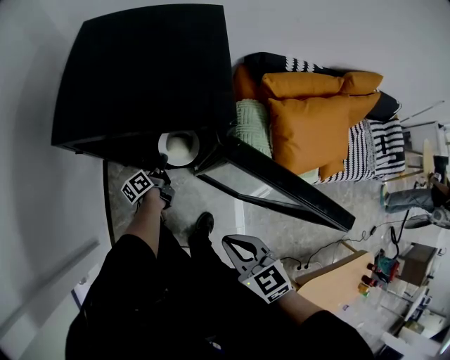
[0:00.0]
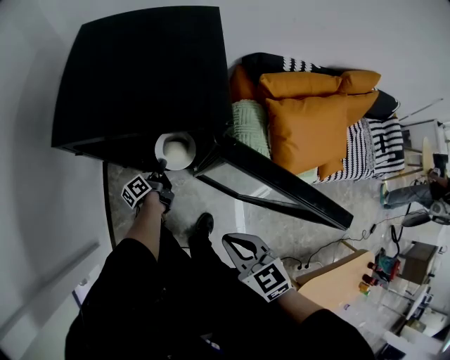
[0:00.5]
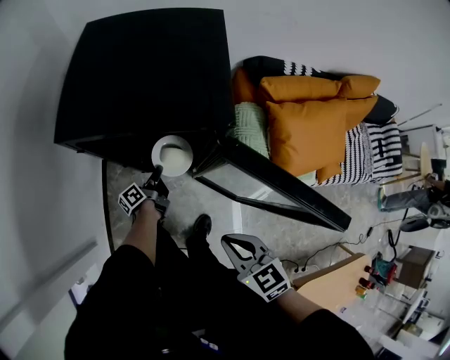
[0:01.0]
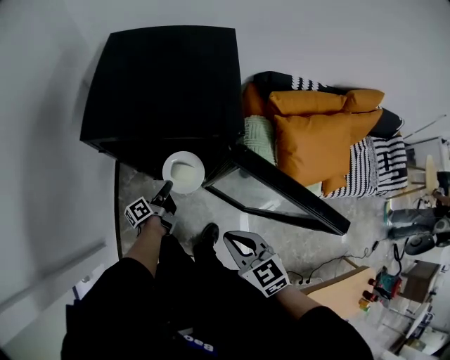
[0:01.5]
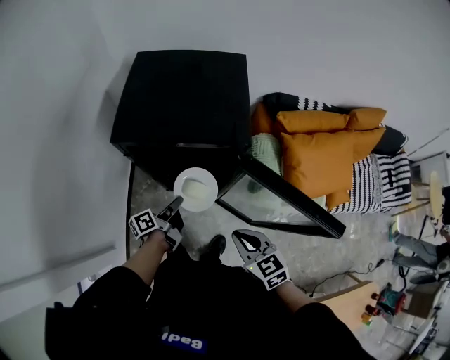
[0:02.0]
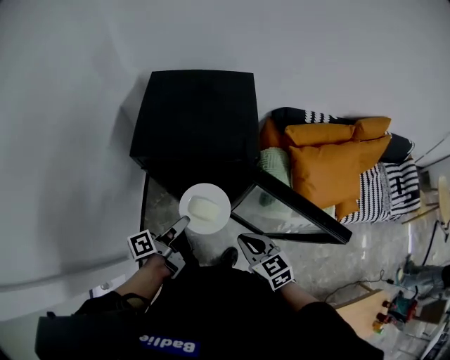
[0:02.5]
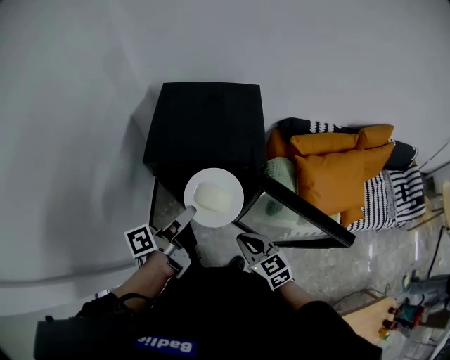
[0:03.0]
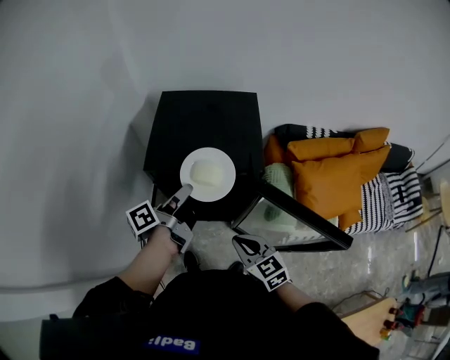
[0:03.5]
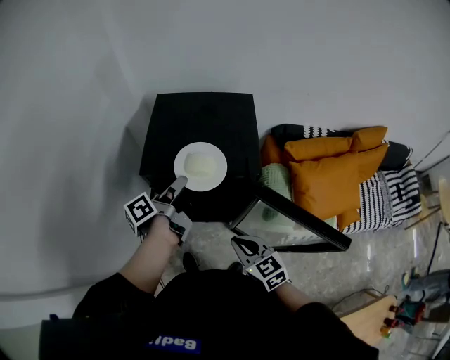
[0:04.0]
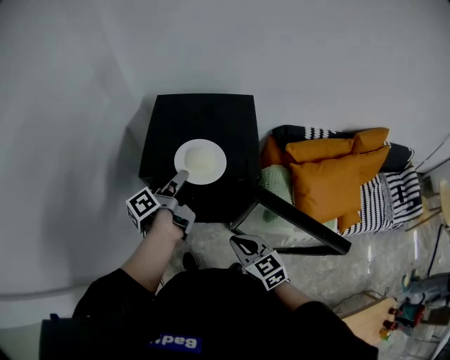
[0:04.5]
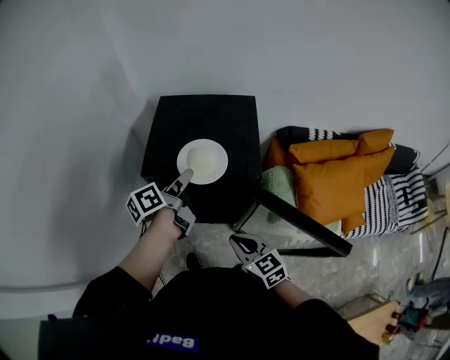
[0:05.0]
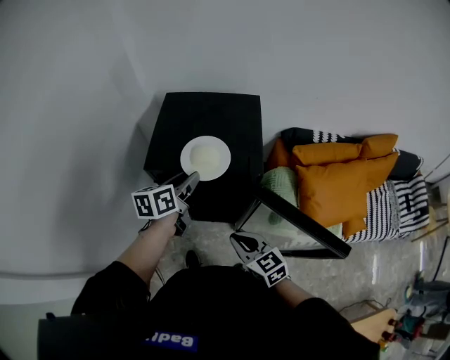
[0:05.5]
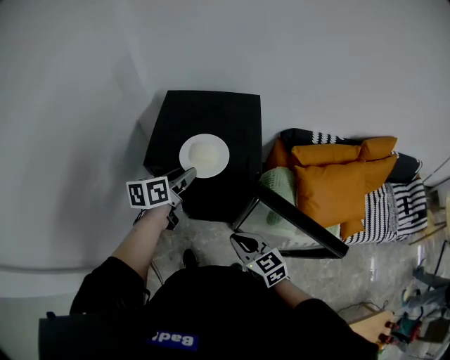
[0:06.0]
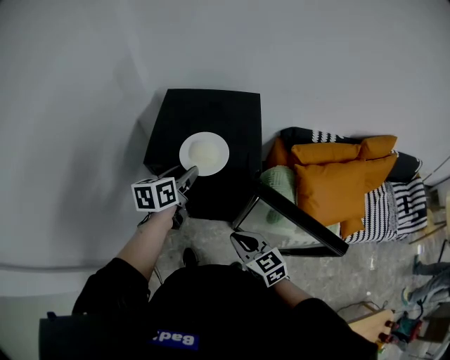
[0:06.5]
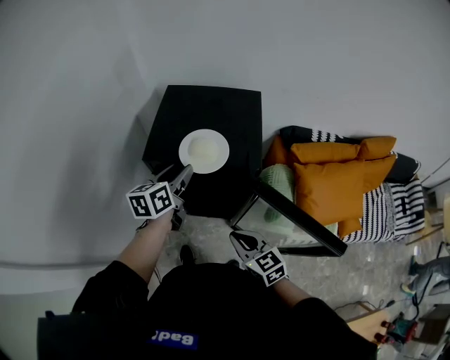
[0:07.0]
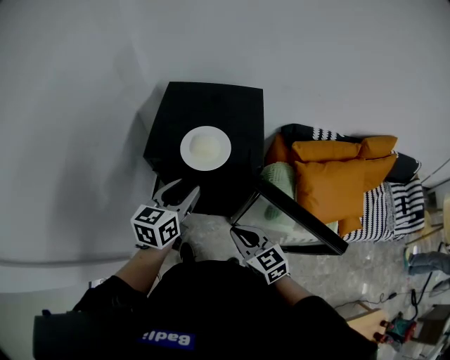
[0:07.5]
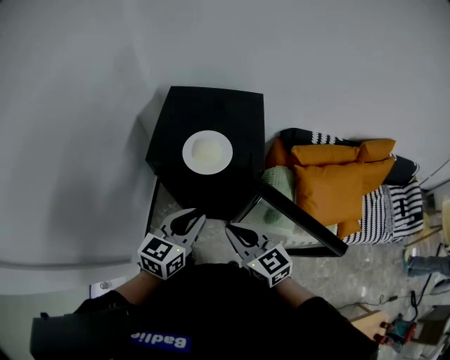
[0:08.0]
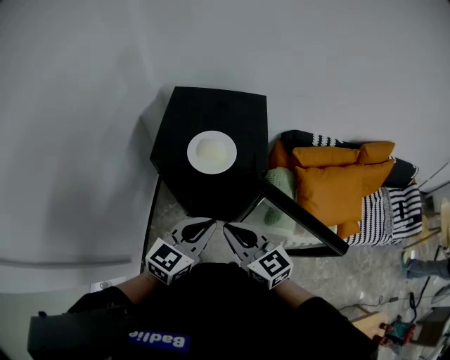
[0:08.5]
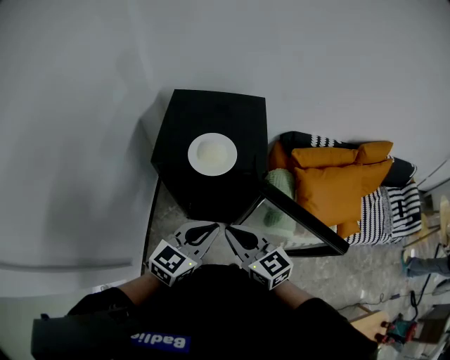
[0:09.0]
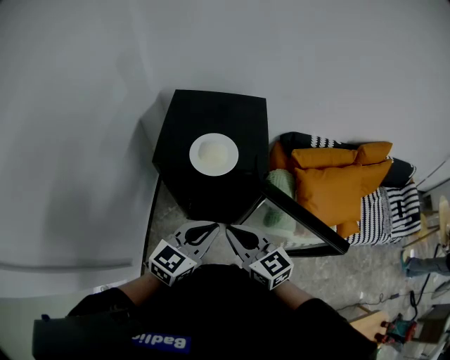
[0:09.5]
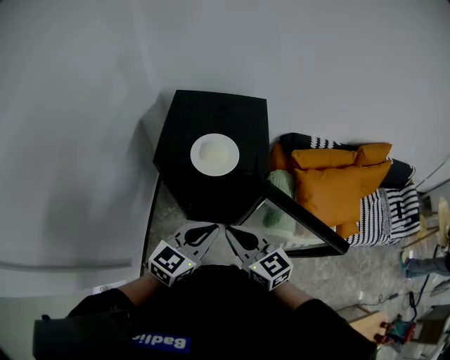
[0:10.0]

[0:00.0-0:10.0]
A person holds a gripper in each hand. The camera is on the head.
0:00.0 to 0:02.0: The left gripper moves upward and backward, about 20 cm.
0:02.0 to 0:04.0: The left gripper is displaced upward and forward by roughly 25 cm, while the right gripper heads to the left and forward, covering roughly 5 cm.
0:04.0 to 0:06.0: The left gripper rolls clockwise, seen from behind, by approximately 40 degrees, and opens.
0:06.0 to 0:08.0: The left gripper heads backward, covering approximately 15 cm, and changes its angle by about 30 degrees; the right gripper heads upward, covering roughly 10 cm.
0:08.0 to 0:10.0: The grippers move only a little.

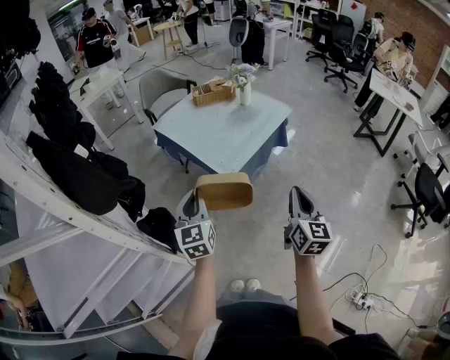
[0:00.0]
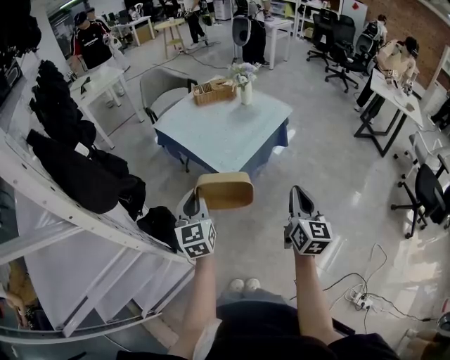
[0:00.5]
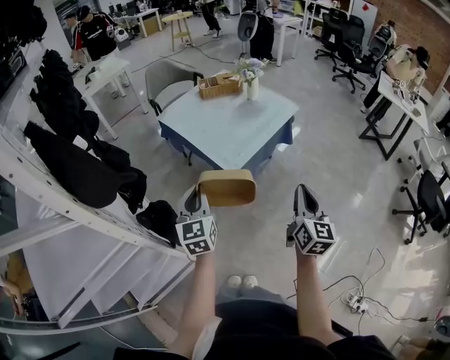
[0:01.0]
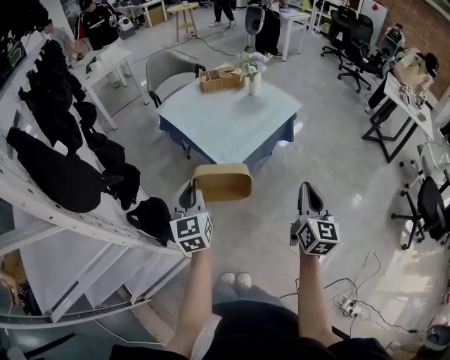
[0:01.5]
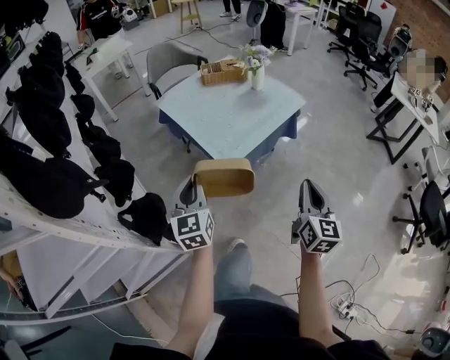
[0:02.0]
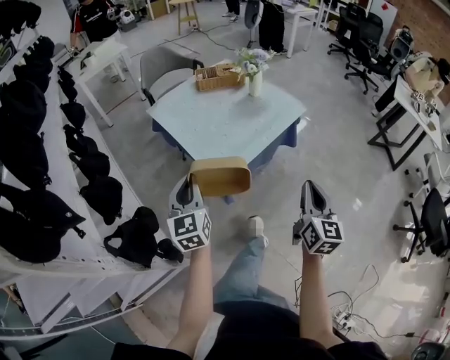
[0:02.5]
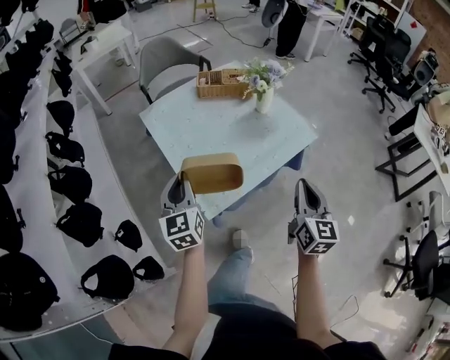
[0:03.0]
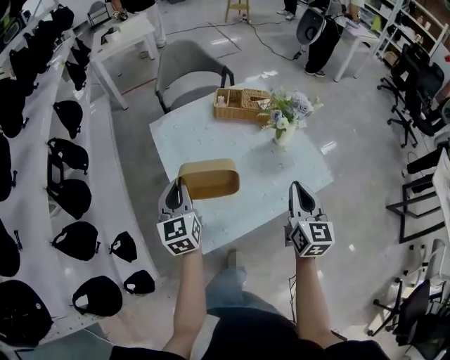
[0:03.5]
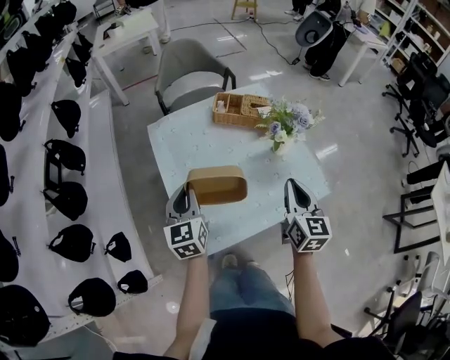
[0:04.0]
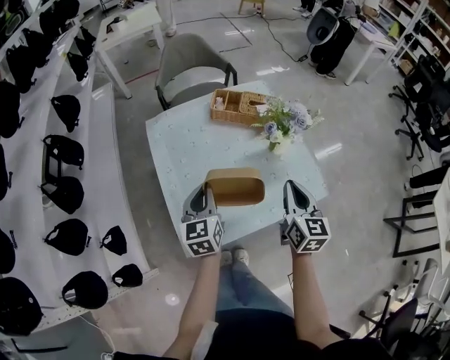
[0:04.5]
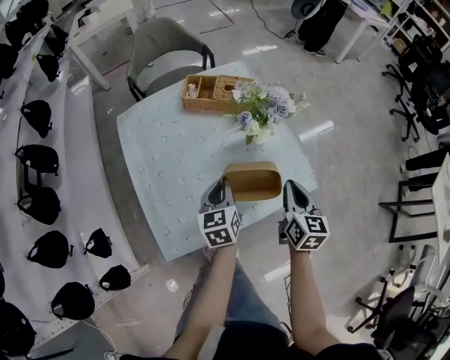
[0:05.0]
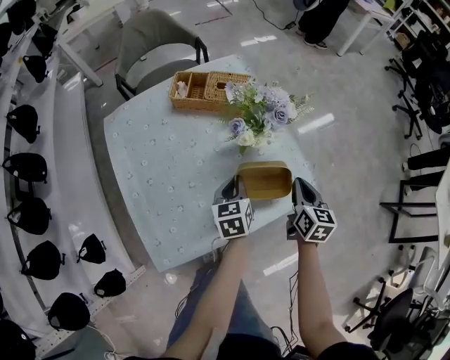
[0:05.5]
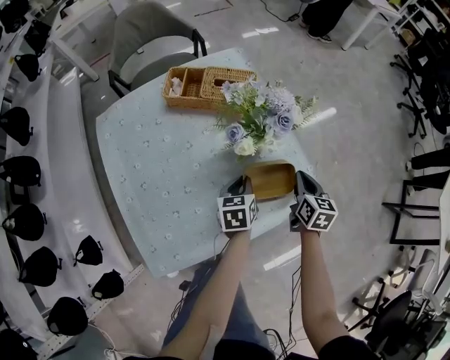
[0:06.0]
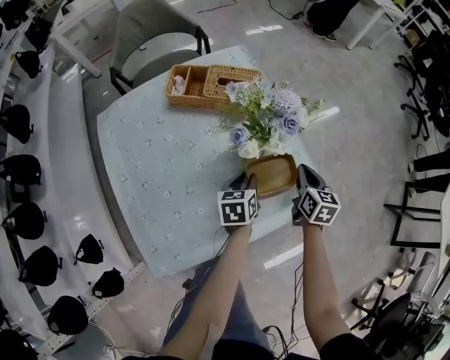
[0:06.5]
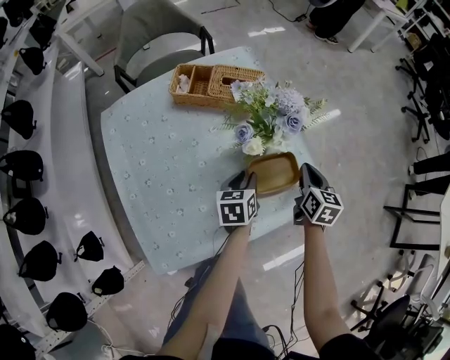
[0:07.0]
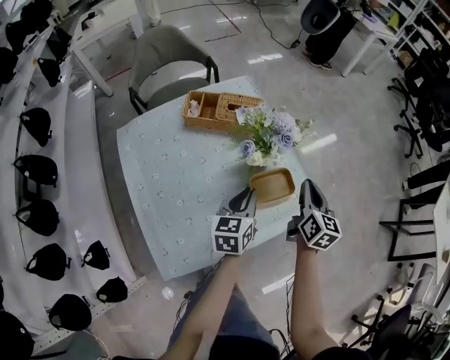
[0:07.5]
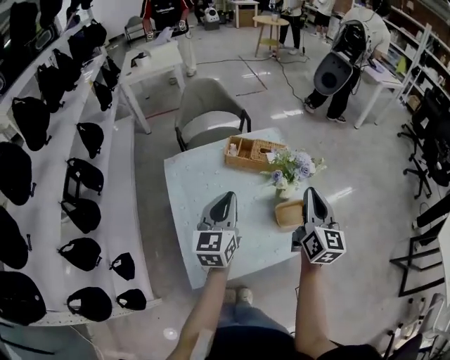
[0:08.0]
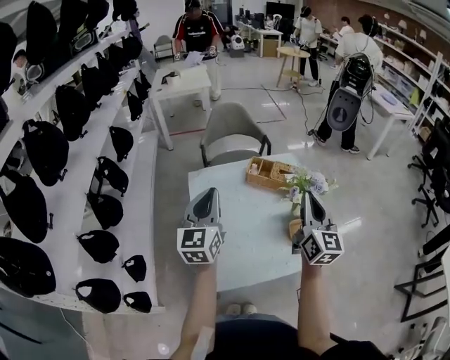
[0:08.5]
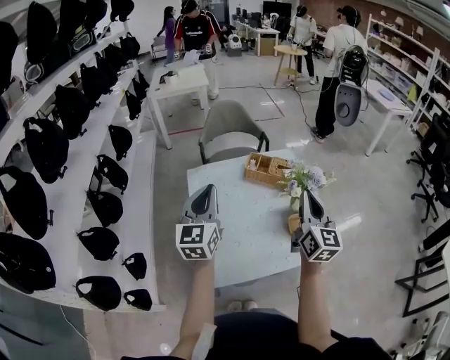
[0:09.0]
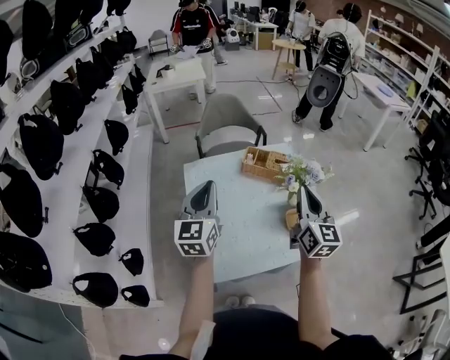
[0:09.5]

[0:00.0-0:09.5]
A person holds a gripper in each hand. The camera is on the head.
0:00.0 to 0:02.0: The left gripper ends up about 5 cm from where it was, while the right gripper heads forward, covering some 5 cm.
0:02.0 to 0:04.0: Both grippers are carried forward, some 50 cm. The left gripper changes its angle by about 20 degrees, while the right gripper rotates some 30 degrees.
0:04.0 to 0:05.5: The left gripper shifts some 35 cm to the right and downward, and rotates about 30 degrees; the right gripper shifts roughly 25 cm to the right, downward and forward.
0:05.5 to 0:07.5: The grippers both shift upward by approximately 10 cm.
0:07.5 to 0:09.5: The right gripper shifts roughly 30 cm upward and to the left, and turns by roughly 30 degrees, while the left gripper travels to the left and upward by some 40 cm, and changes its angle by roughly 40 degrees.

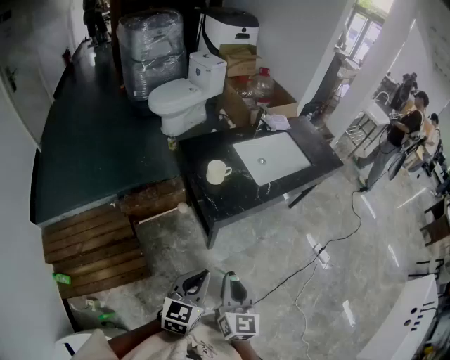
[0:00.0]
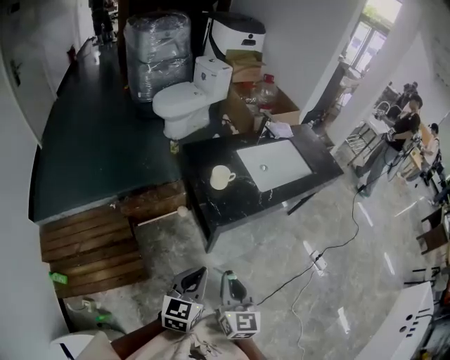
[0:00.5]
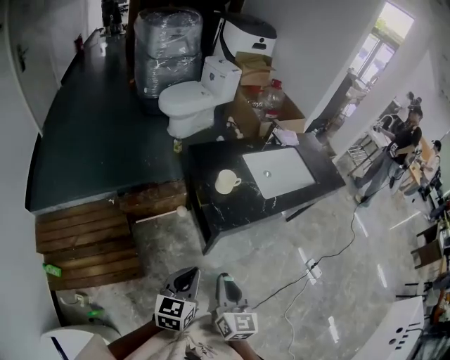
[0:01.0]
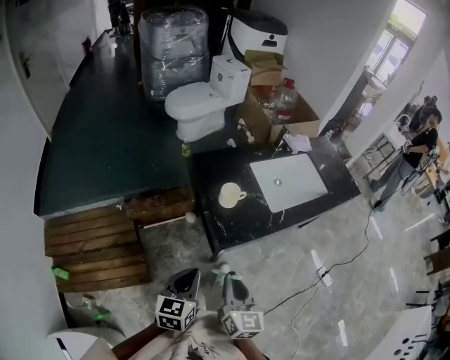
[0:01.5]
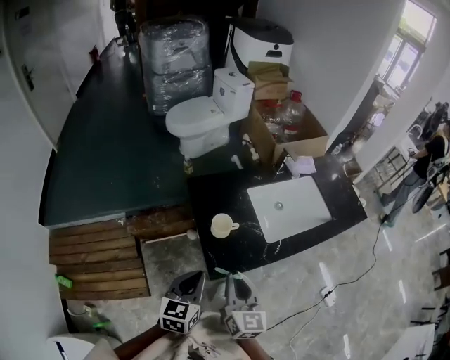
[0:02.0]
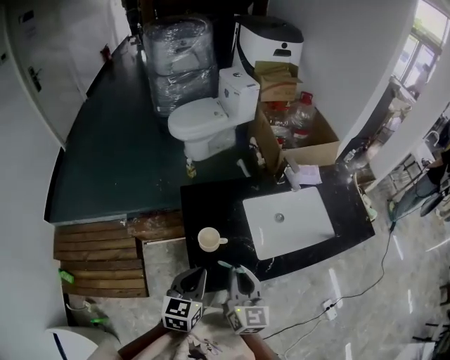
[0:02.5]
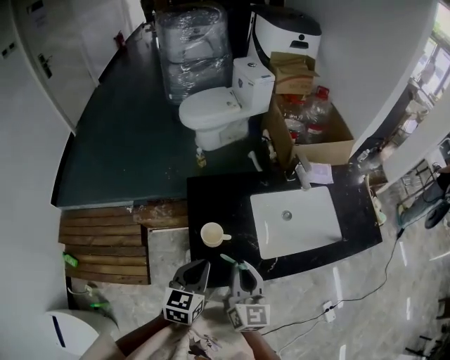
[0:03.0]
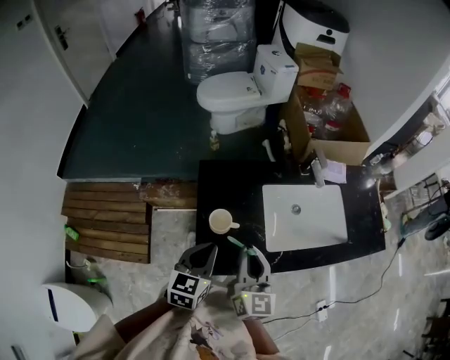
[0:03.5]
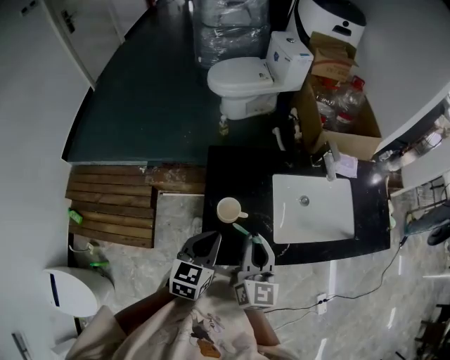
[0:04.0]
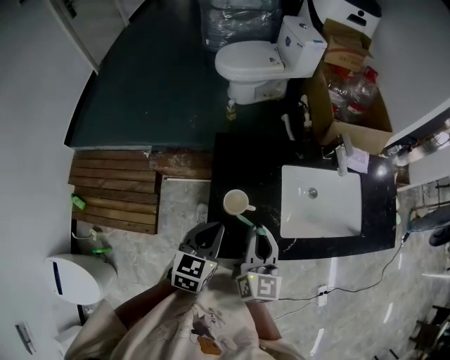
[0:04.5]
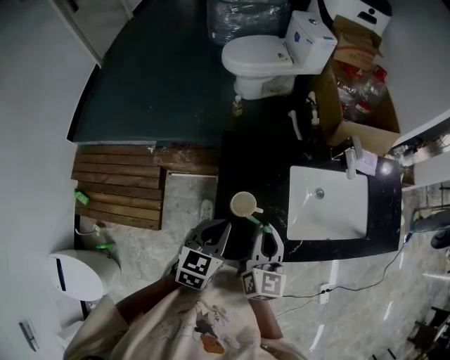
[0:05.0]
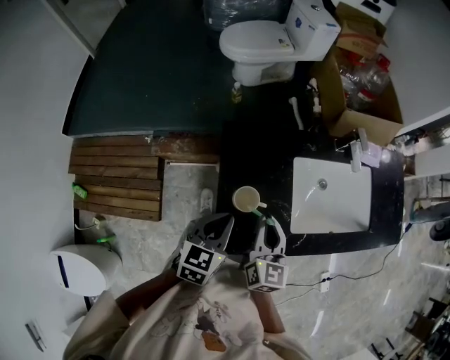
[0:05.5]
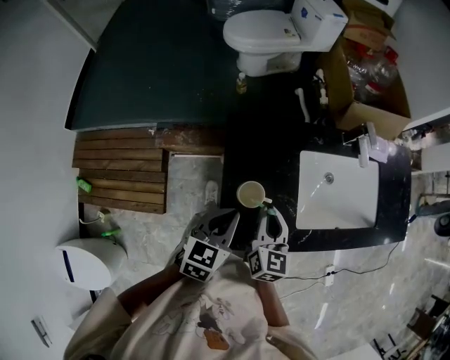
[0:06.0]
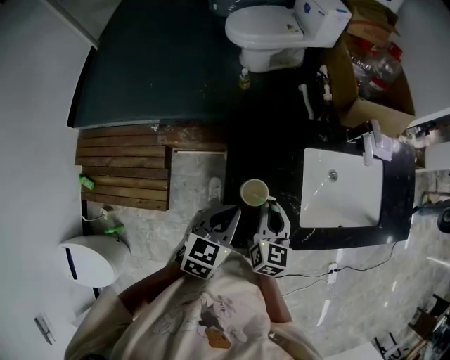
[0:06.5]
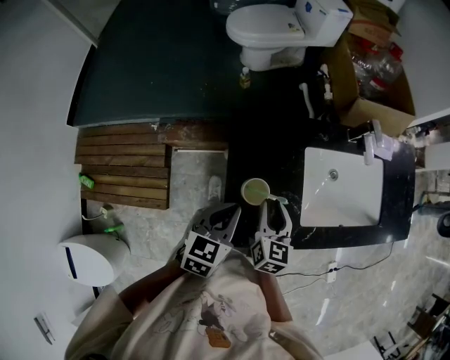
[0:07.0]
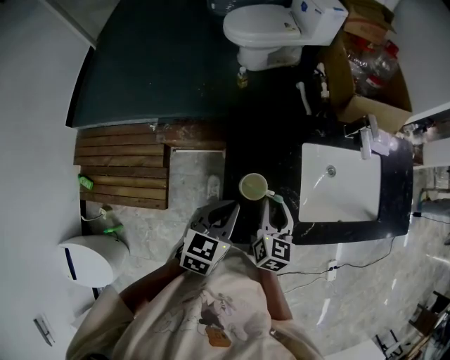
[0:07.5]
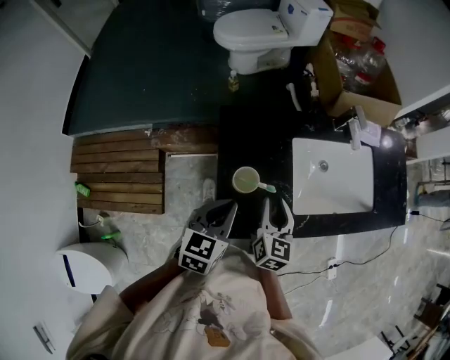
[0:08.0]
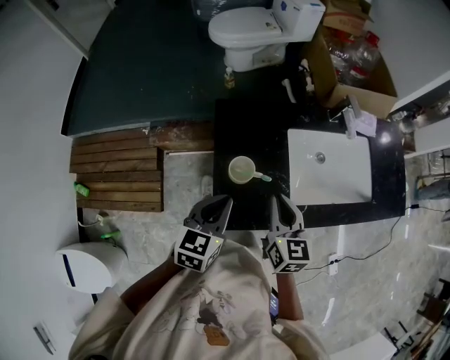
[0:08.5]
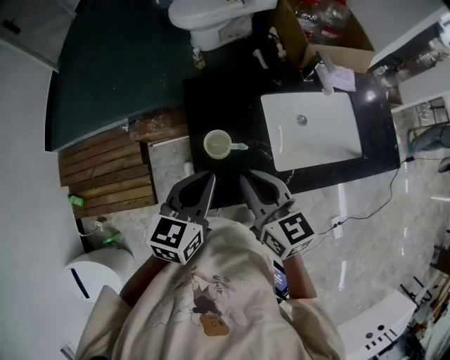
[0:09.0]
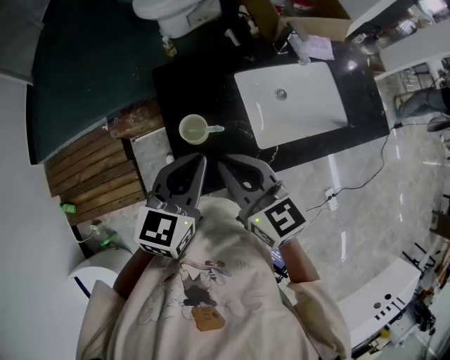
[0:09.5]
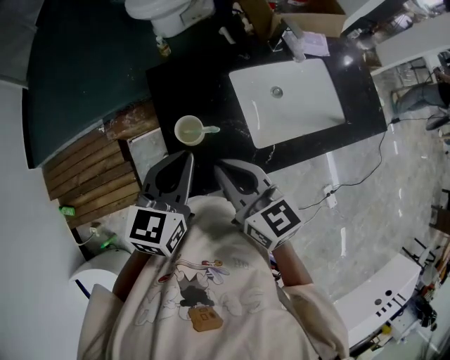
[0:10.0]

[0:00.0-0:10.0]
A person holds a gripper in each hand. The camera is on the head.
0:00.0 to 0:02.0: The grippers both shift forward by some 25 cm.
0:02.0 to 0:04.0: The two grippers go roughly 15 cm forward and to the right.
0:04.0 to 0:06.0: The right gripper heads downward and forward, covering roughly 15 cm, while the left gripper heads forward, covering about 5 cm.
0:06.0 to 0:08.0: The right gripper opens.
0:08.0 to 0:10.0: The right gripper moves upward and backward, approximately 10 cm, rotates about 30 degrees, and closes its fingers, while the left gripper moves upward and to the right, about 10 cm.
